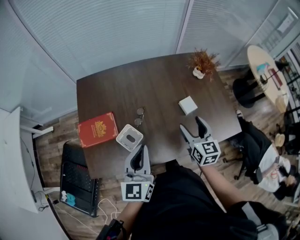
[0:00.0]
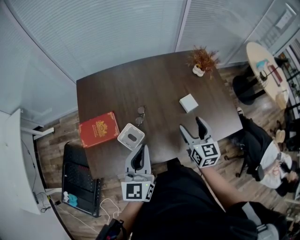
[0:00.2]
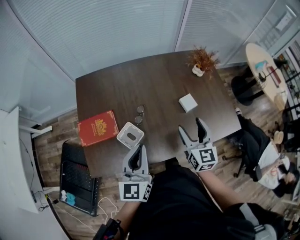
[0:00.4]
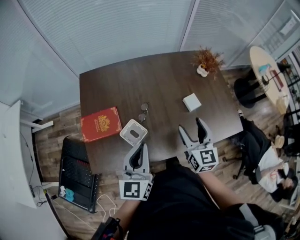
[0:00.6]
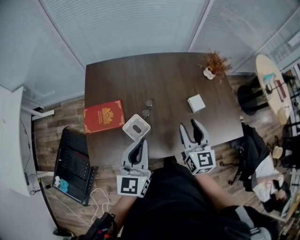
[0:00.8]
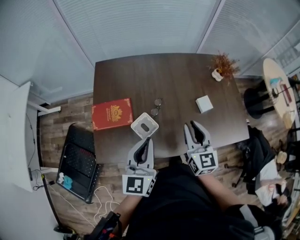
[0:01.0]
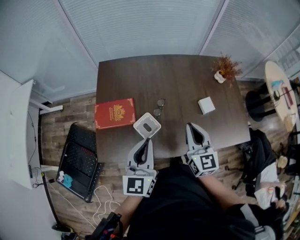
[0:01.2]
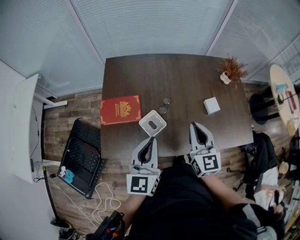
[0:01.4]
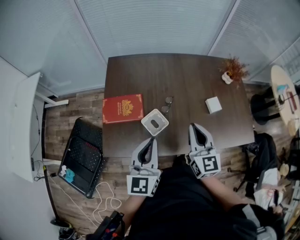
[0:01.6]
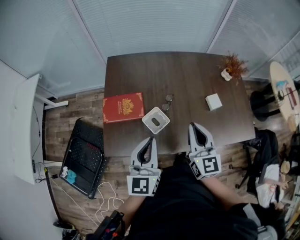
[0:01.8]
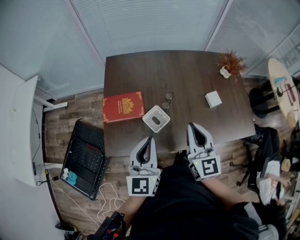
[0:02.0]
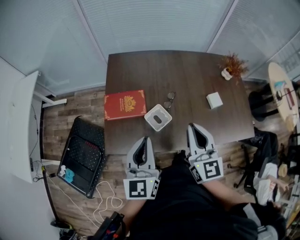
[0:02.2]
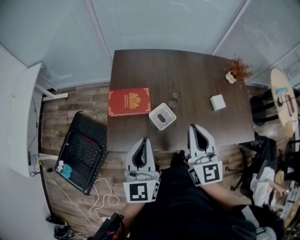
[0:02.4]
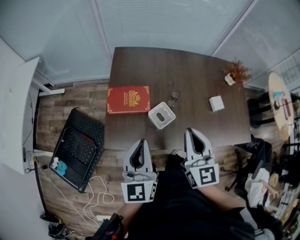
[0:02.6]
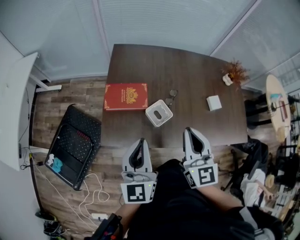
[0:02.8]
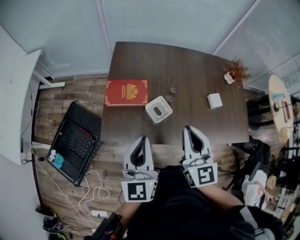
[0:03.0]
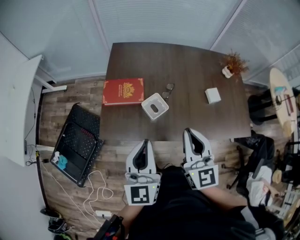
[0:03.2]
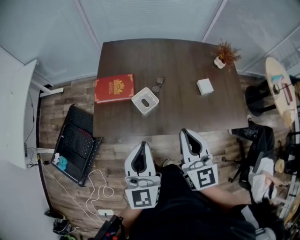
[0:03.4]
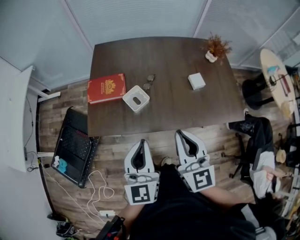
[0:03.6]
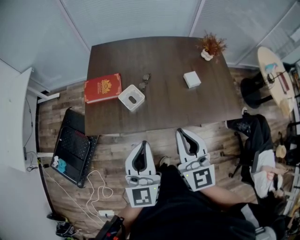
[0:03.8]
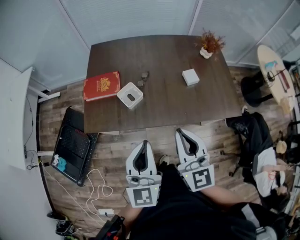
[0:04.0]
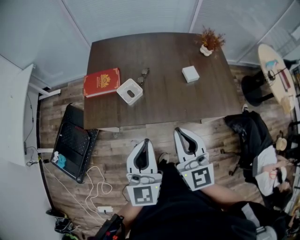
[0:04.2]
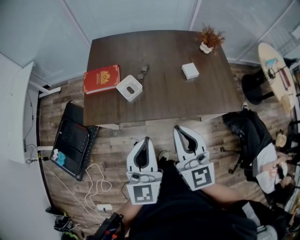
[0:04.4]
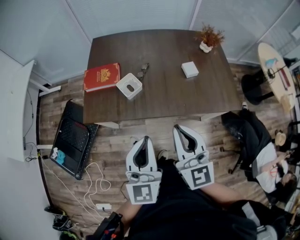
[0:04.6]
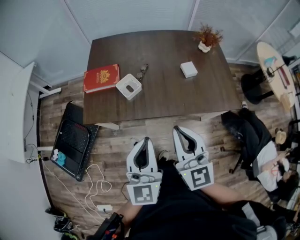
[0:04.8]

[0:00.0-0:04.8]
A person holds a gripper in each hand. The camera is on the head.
0:00.0 to 0:01.6: The right gripper heads to the left and backward, covering some 15 cm, and closes up. Meanwhile the left gripper heads to the left and backward, covering approximately 10 cm.
0:01.6 to 0:03.2: The left gripper heads backward, covering about 10 cm, while the right gripper is displaced backward and to the left by some 10 cm.
0:03.2 to 0:04.8: The two grippers go approximately 20 cm backward and to the right.

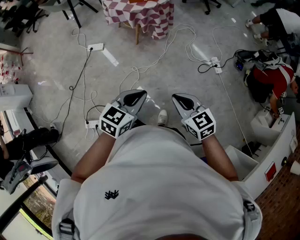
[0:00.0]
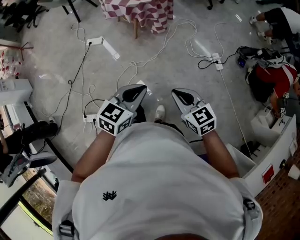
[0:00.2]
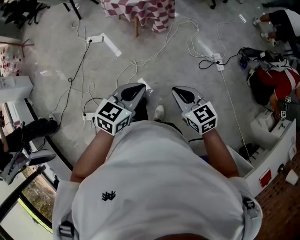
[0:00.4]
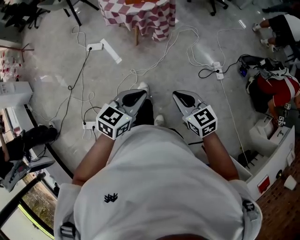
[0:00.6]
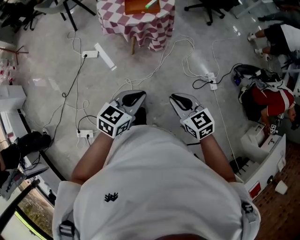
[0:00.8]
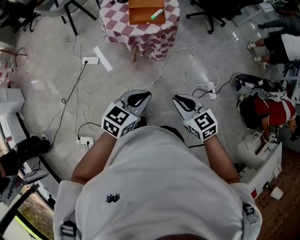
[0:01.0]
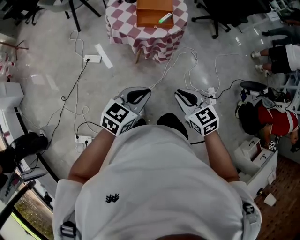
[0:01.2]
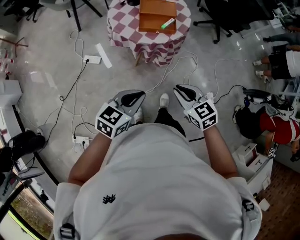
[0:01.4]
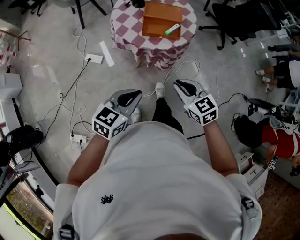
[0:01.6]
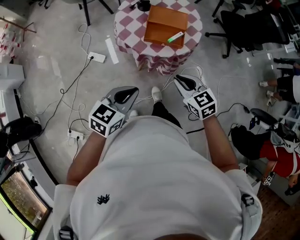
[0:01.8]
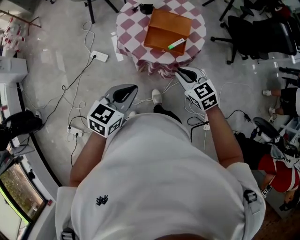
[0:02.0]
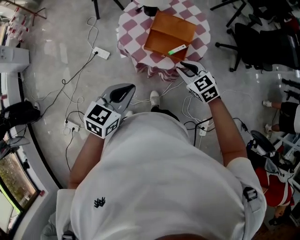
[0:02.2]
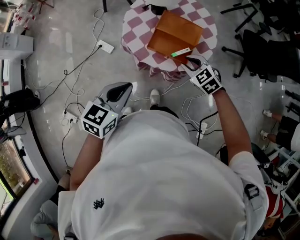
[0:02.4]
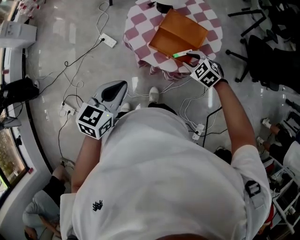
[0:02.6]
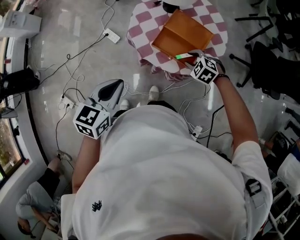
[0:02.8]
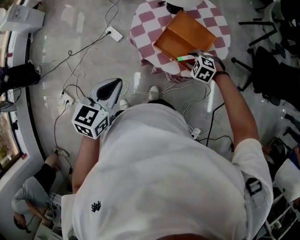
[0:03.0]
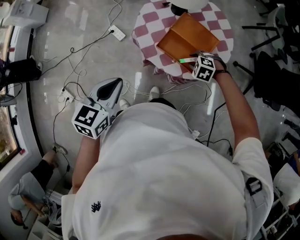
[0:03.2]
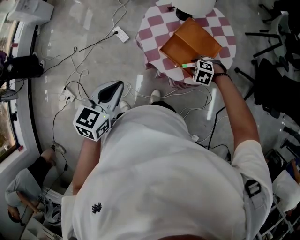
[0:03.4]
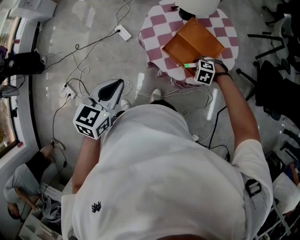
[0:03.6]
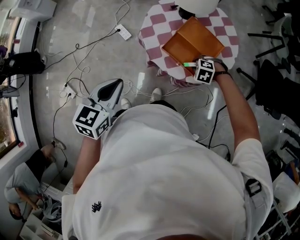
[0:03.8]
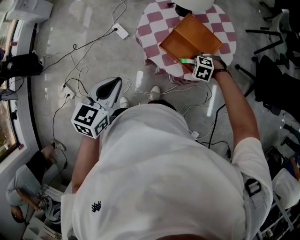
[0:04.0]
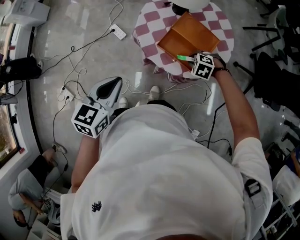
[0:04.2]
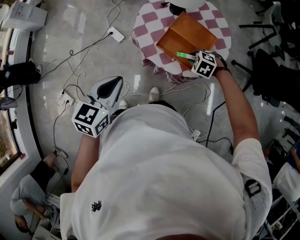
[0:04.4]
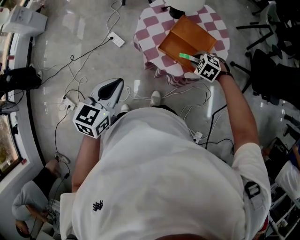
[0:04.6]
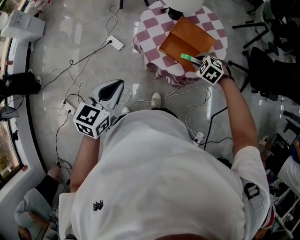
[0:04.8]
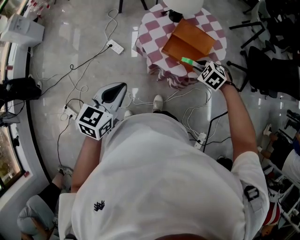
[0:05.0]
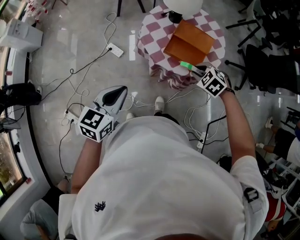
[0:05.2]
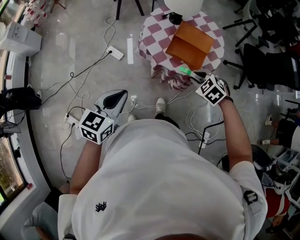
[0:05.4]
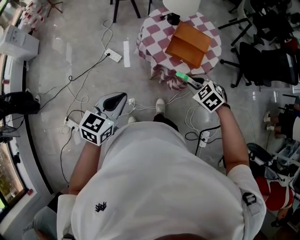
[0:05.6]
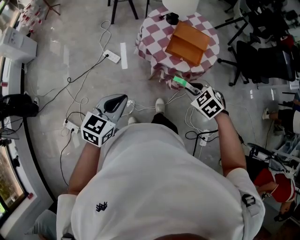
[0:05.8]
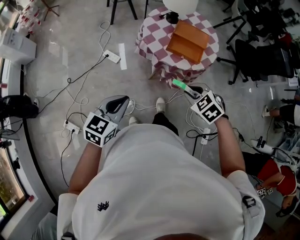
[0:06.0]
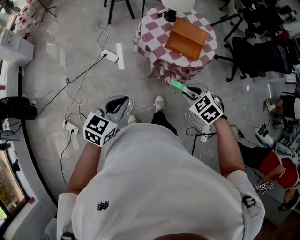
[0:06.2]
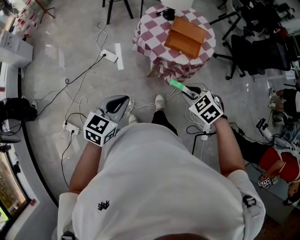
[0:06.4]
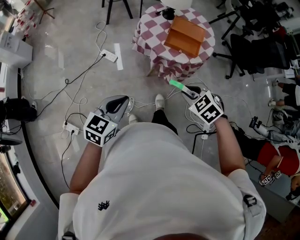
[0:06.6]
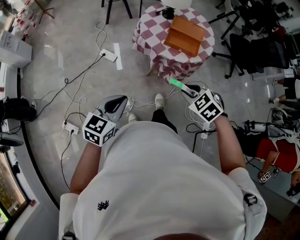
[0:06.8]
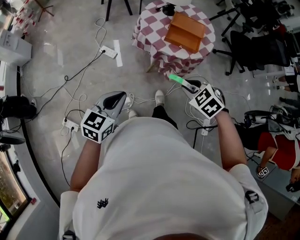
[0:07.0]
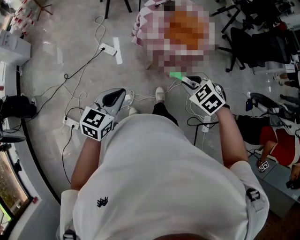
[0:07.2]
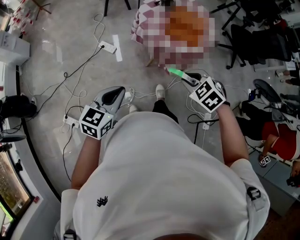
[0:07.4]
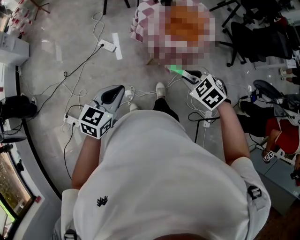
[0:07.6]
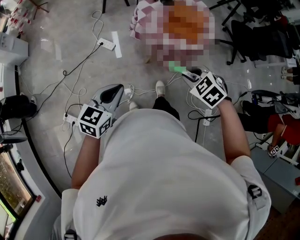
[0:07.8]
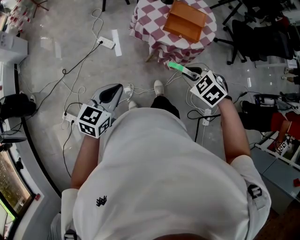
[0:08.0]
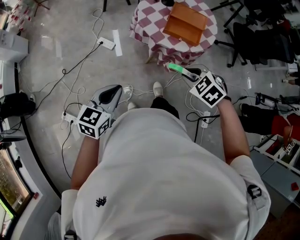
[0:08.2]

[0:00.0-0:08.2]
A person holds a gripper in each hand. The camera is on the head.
0:00.0 to 0:01.6: The grippers both shift forward by some 40 cm.
0:01.6 to 0:03.2: The left gripper moves about 15 cm, and rotates approximately 40 degrees. The right gripper changes place by roughly 40 cm, angles its fingers downward, by some 40 degrees, and opens up.
0:03.2 to 0:05.0: The right gripper moves upward, some 10 cm, and changes its angle by approximately 20 degrees. The left gripper moves roughly 5 cm.
0:05.0 to 0:06.6: The left gripper heads backward and to the left, covering roughly 15 cm. The right gripper shifts about 30 cm backward and to the left.
0:06.6 to 0:08.2: The grippers make only small movements.

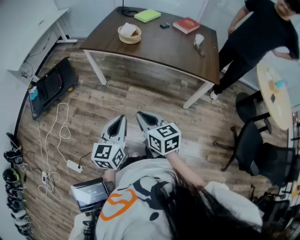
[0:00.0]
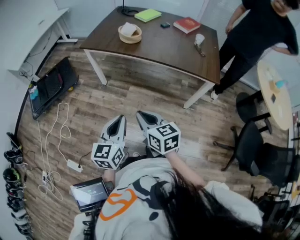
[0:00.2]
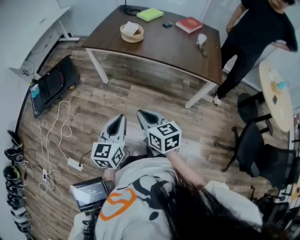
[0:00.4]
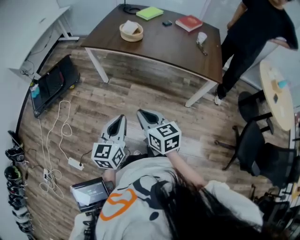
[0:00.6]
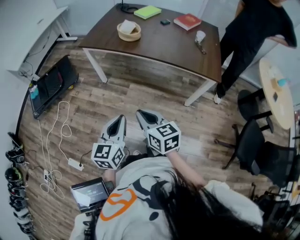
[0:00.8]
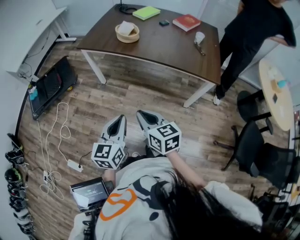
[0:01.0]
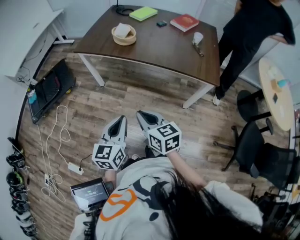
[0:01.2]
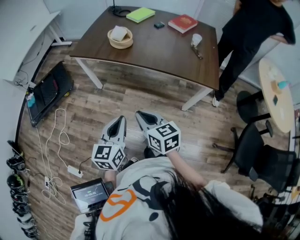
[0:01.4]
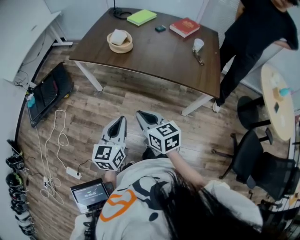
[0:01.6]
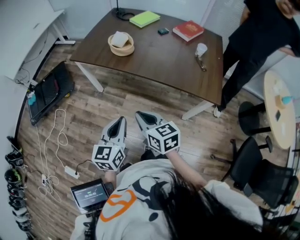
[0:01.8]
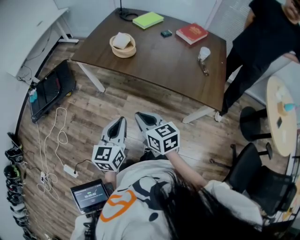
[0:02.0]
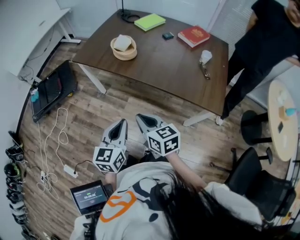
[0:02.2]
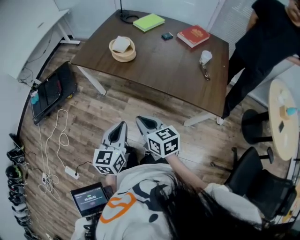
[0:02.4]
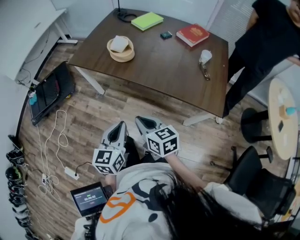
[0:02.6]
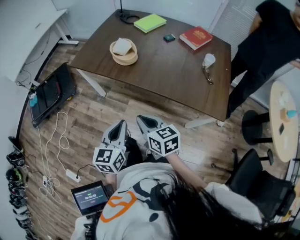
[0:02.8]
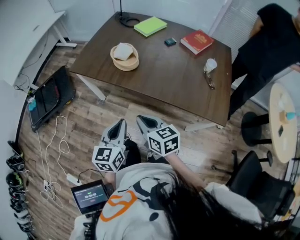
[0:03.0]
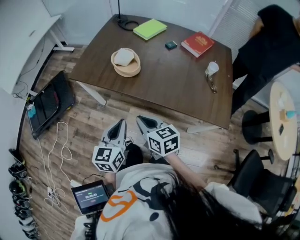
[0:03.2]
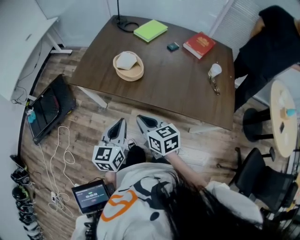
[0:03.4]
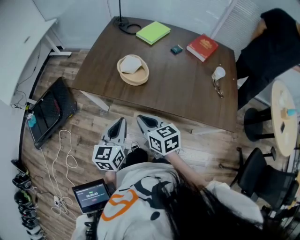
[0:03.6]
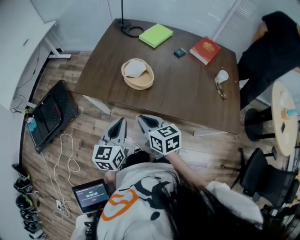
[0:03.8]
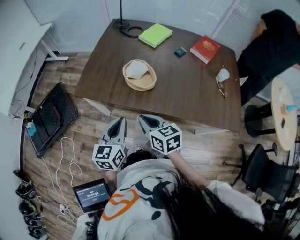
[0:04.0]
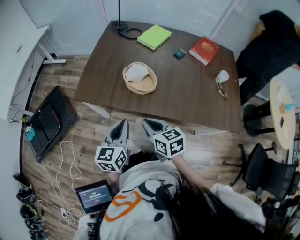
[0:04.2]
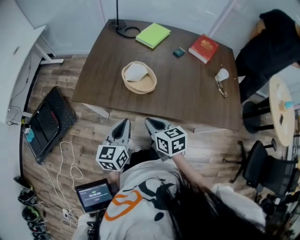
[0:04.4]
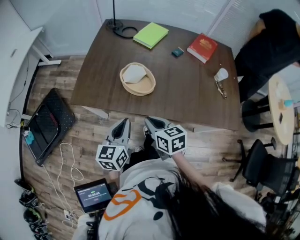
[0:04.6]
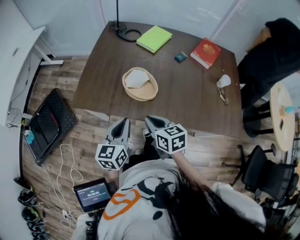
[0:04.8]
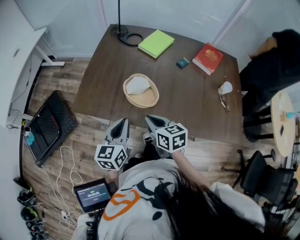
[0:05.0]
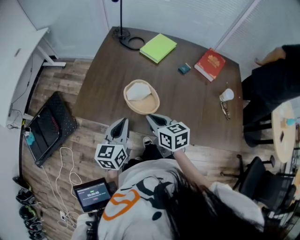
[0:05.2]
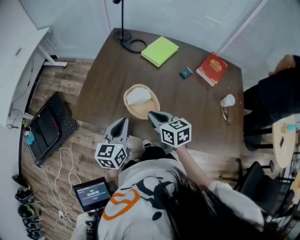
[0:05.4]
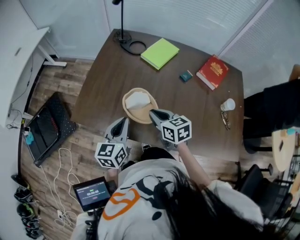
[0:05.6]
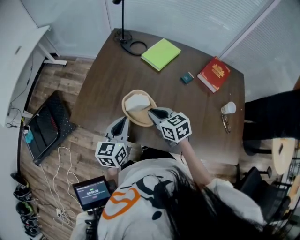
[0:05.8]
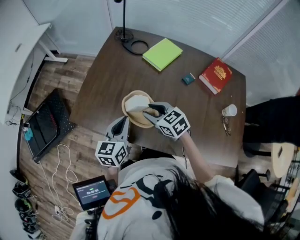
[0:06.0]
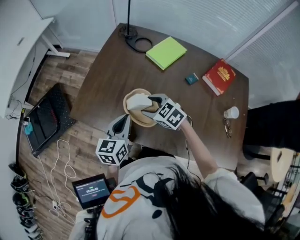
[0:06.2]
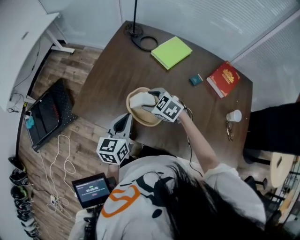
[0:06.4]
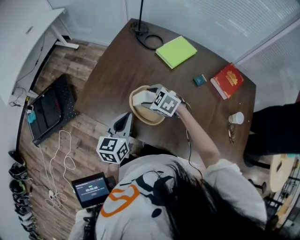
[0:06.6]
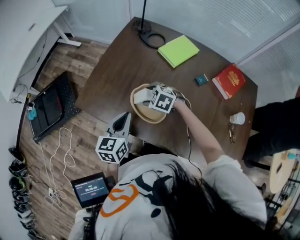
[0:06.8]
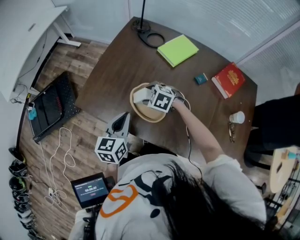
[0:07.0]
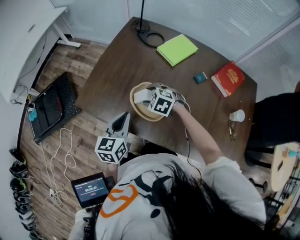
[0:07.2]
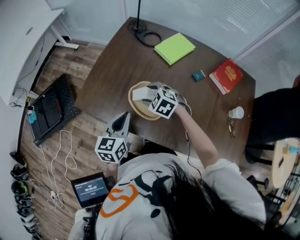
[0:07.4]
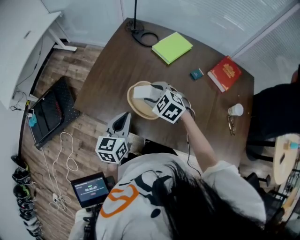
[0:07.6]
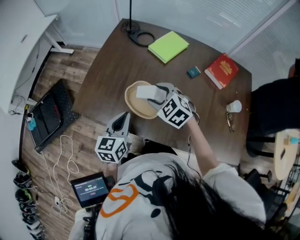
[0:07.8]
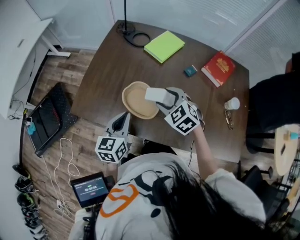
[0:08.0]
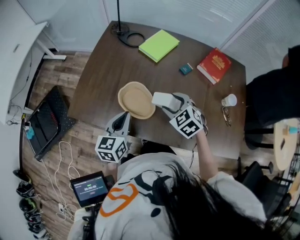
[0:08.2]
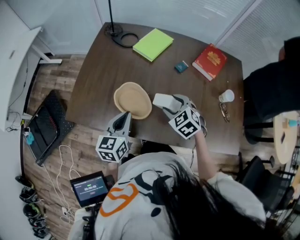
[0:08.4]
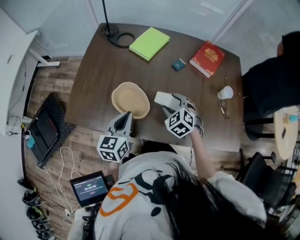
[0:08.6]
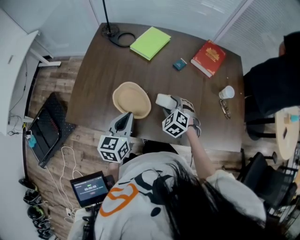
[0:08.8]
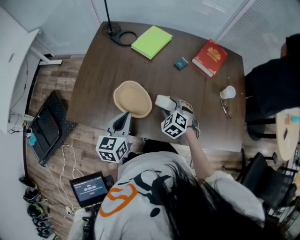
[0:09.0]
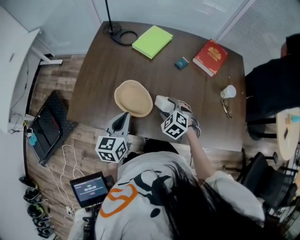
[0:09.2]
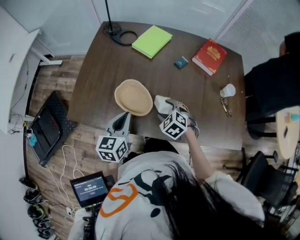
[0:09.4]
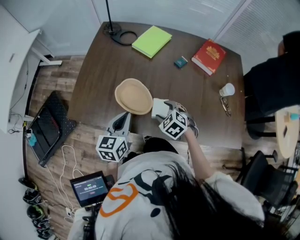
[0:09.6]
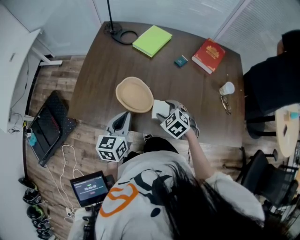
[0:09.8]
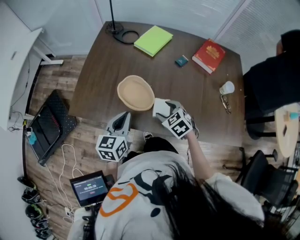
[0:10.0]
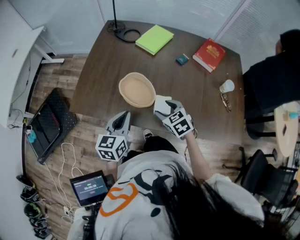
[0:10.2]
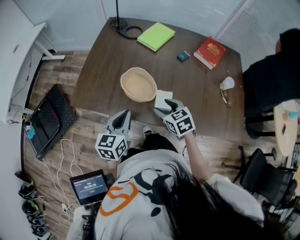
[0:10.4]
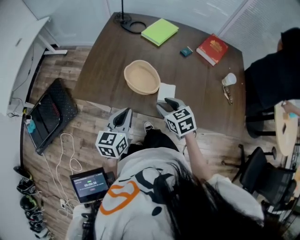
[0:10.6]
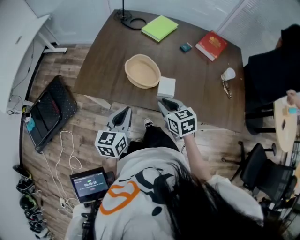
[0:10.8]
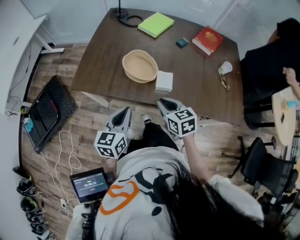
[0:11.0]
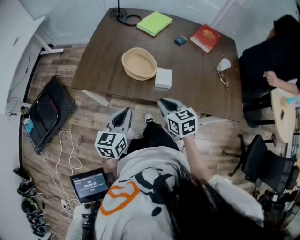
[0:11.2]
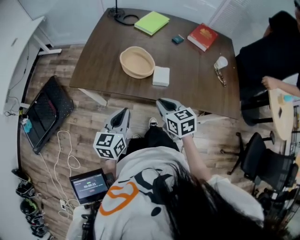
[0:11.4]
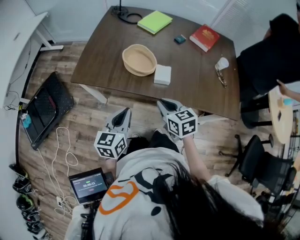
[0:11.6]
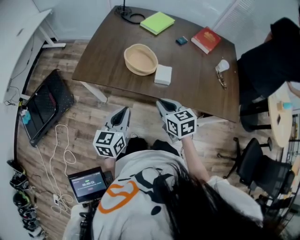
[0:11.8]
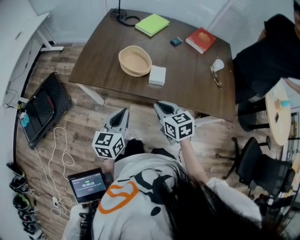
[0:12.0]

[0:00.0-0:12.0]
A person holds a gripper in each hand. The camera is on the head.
0:00.0 to 0:01.6: The grippers both shift forward and to the right by roughly 15 cm.
0:01.6 to 0:03.0: The two grippers go about 15 cm forward.
0:03.0 to 0:04.4: Both grippers move forward and to the left, about 20 cm.
0:04.4 to 0:06.0: Both grippers move forward, roughly 20 cm. The right gripper rotates roughly 30 degrees, and opens its fingers.
0:06.0 to 0:07.6: The right gripper goes downward and returns, roughly 10 cm each way, changes its angle by roughly 30 degrees, and opens.
0:07.6 to 0:09.0: The left gripper moves some 5 cm. The right gripper ends up roughly 20 cm from where it was, and changes its angle by some 30 degrees.
0:09.0 to 0:10.4: The right gripper moves backward and to the left, some 10 cm, and swivels about 40 degrees, while the left gripper is displaced backward by some 5 cm.
0:10.4 to 0:12.0: Both grippers travel together backward, roughly 15 cm. The right gripper closes.
